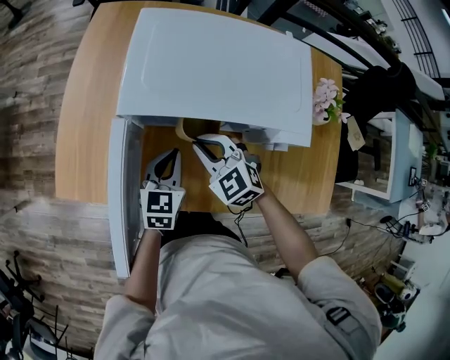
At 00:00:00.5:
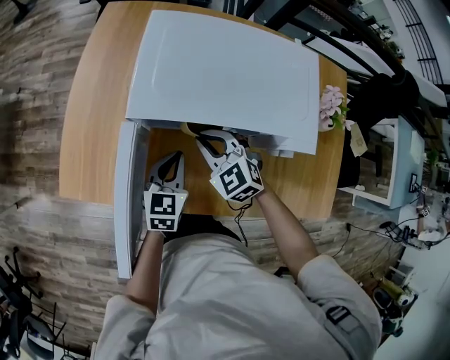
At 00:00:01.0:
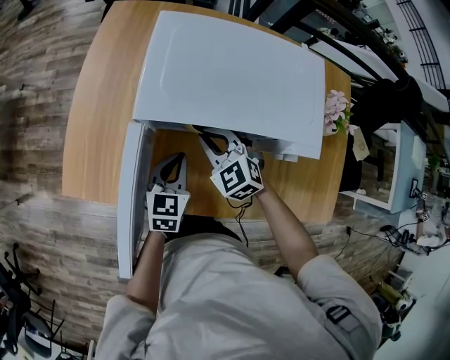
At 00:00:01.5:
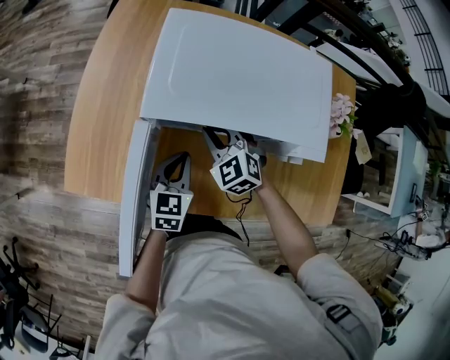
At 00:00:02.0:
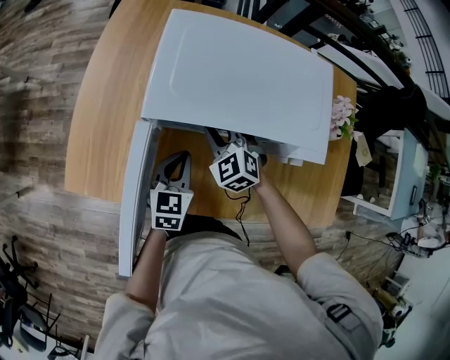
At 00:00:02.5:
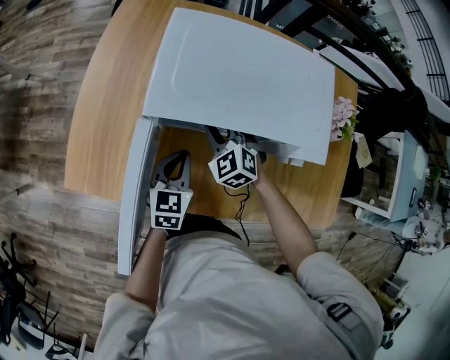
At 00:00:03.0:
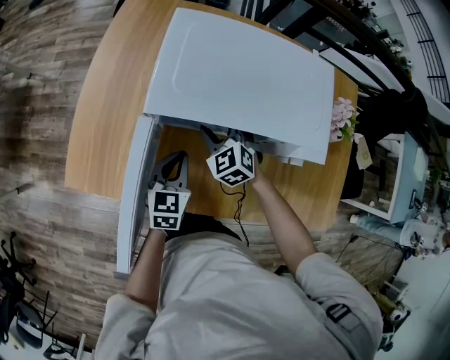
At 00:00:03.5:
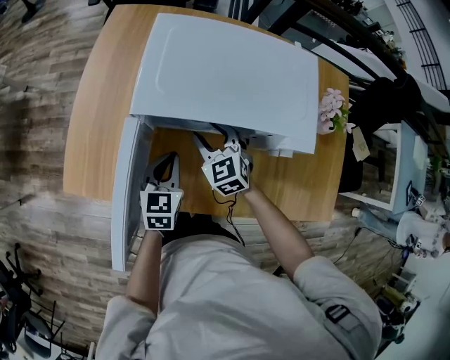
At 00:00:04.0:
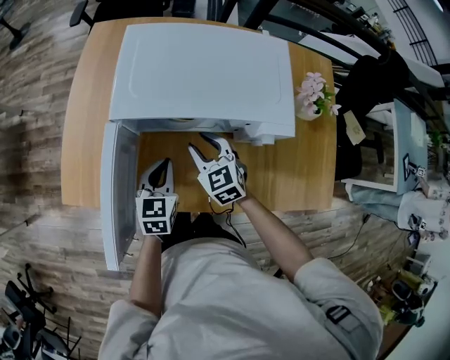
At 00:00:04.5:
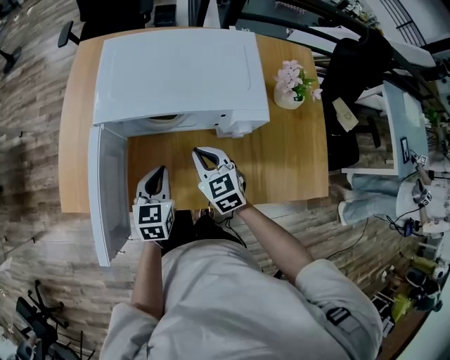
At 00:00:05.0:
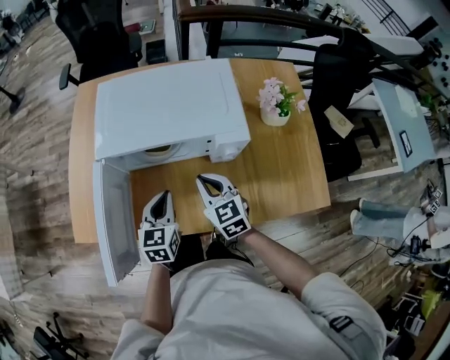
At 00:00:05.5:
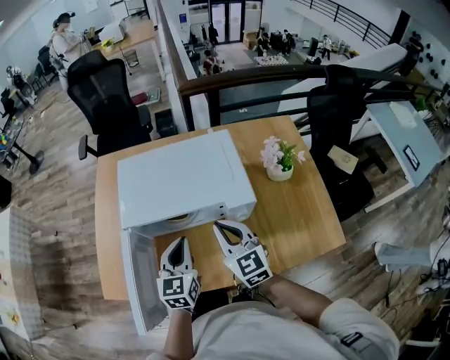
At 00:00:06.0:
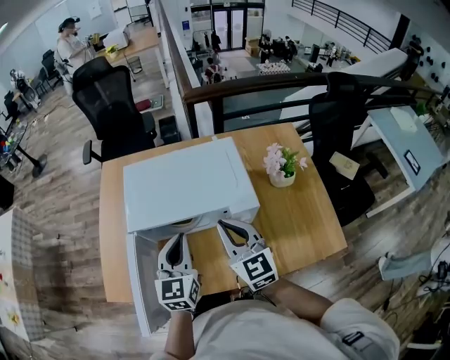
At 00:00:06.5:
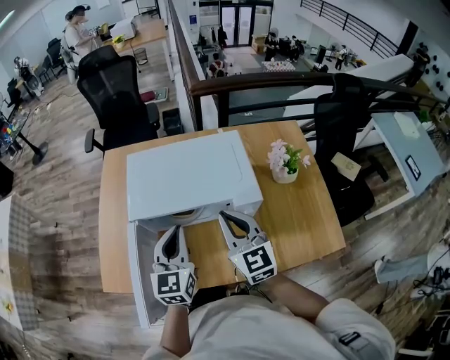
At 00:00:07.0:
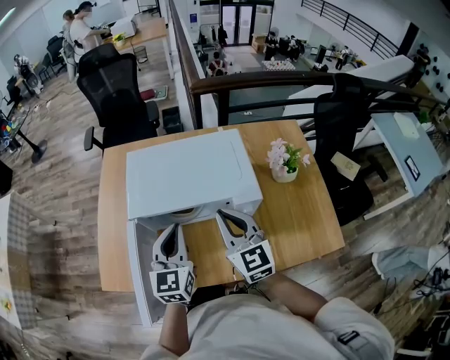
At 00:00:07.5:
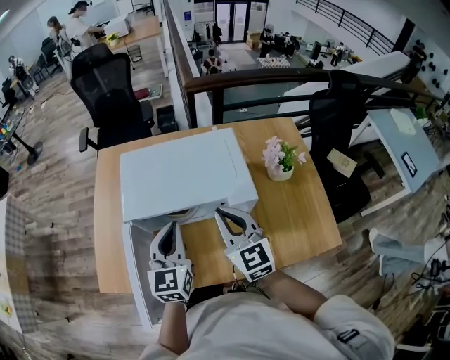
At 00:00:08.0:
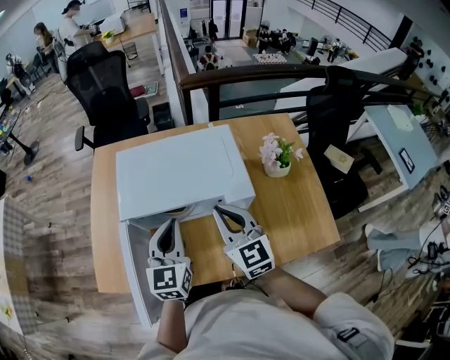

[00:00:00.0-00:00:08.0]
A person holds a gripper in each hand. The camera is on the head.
00:00:00.0 to 00:00:02.0: The right gripper is displaced forward by about 5 cm.
00:00:02.0 to 00:00:04.0: The right gripper travels backward by roughly 5 cm, swivels roughly 30 degrees, and opens its fingers.
00:00:04.0 to 00:00:06.0: Both grippers travel together upward and to the right, roughly 20 cm. The left gripper swivels roughly 20 degrees. The right gripper swivels some 30 degrees, and closes.
00:00:06.0 to 00:00:08.0: The grippers move only a little.

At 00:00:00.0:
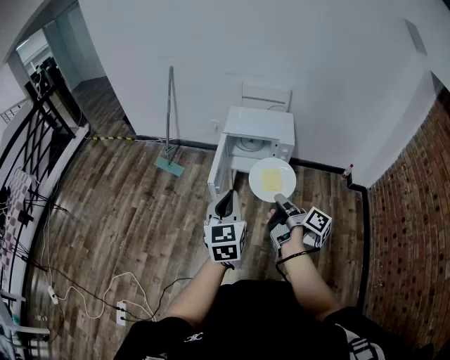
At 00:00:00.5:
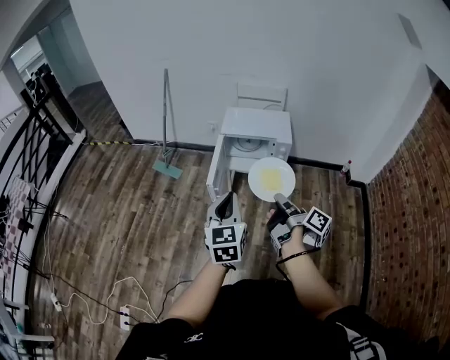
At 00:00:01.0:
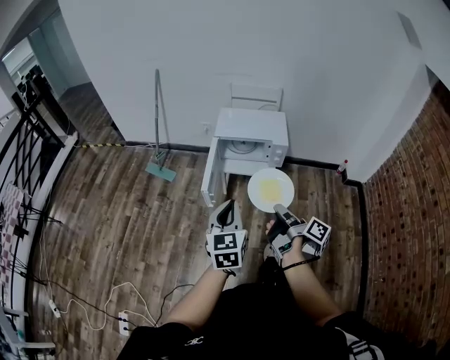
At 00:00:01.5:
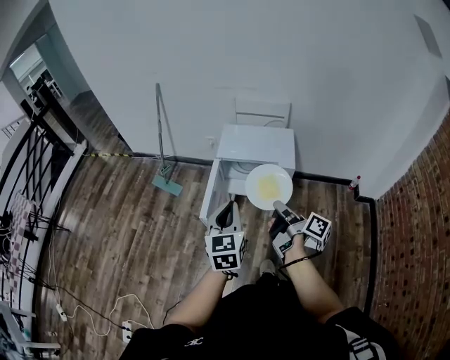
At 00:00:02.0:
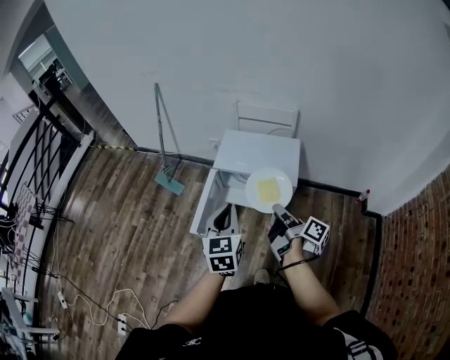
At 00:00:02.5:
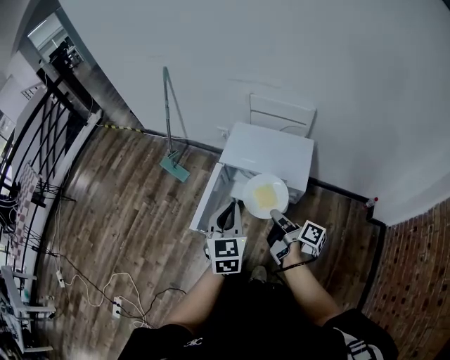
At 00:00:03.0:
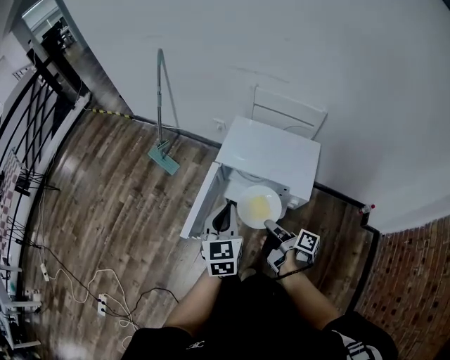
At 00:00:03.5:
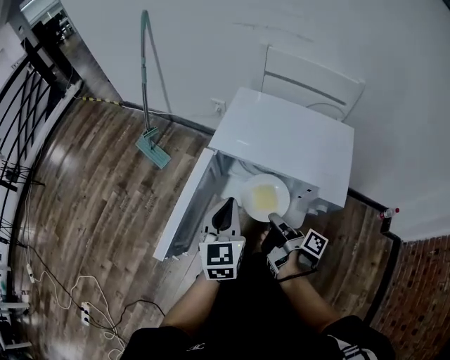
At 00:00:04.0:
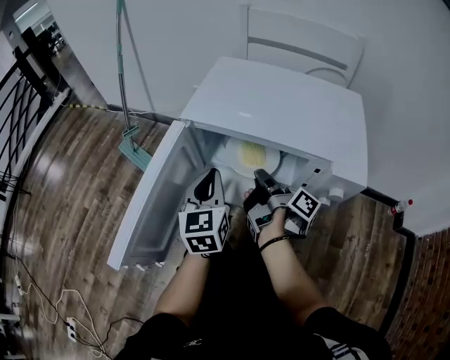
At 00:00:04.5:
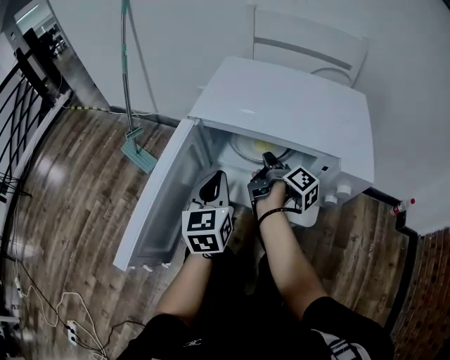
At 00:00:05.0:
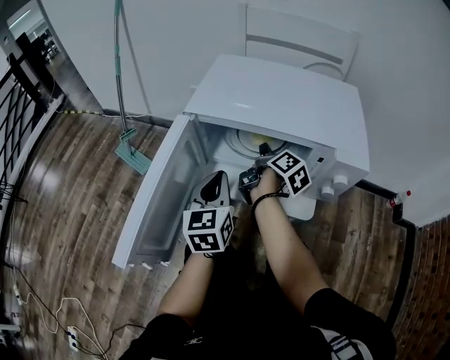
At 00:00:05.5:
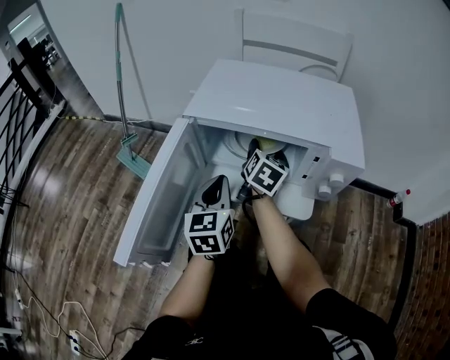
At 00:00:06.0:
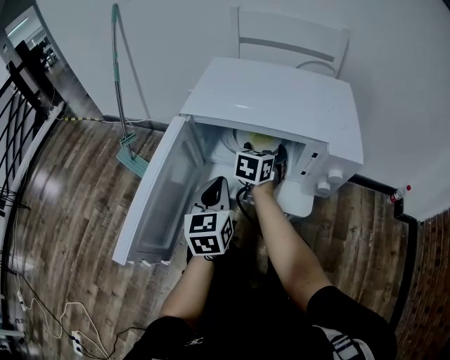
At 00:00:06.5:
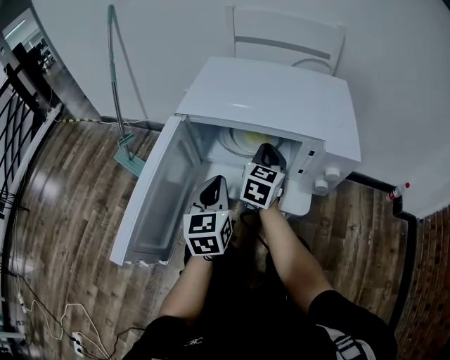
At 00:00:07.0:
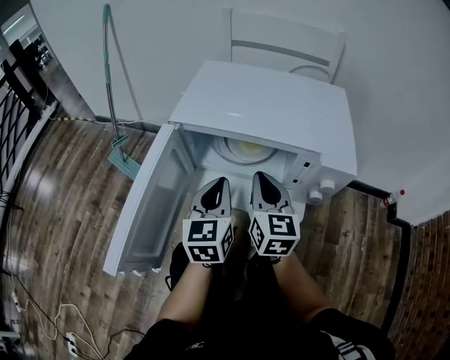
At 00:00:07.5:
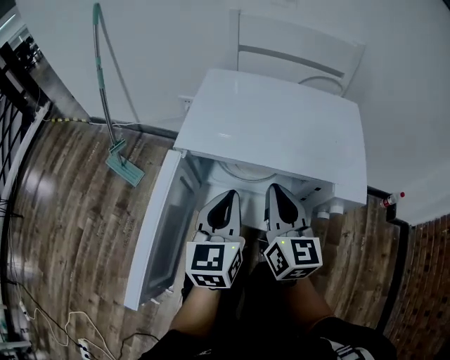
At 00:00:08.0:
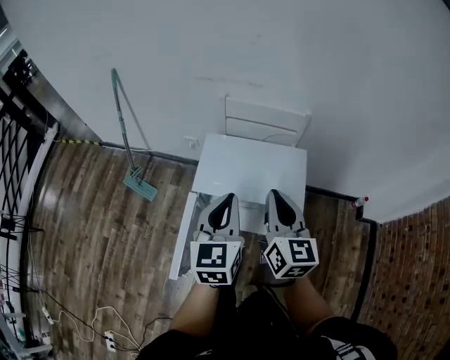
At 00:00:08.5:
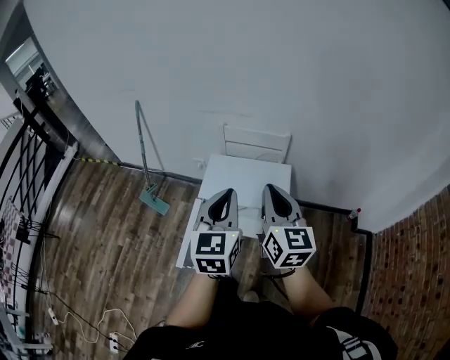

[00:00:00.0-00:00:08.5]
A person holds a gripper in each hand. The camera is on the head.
00:00:00.0 to 00:00:02.0: Both grippers travel together forward and to the right, about 30 cm.
00:00:02.0 to 00:00:04.0: The two grippers go about 50 cm downward and forward.
00:00:04.0 to 00:00:06.5: The right gripper heads forward, covering approximately 5 cm, rotates around the line of its fingers by roughly 90 degrees, counterclockwise from behind, and opens and closes again.
00:00:06.5 to 00:00:08.5: Both grippers travel together upward, about 60 cm. The right gripper turns by some 20 degrees.

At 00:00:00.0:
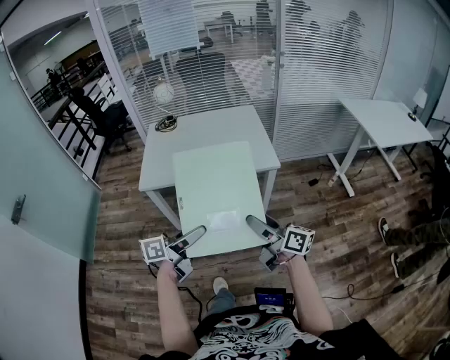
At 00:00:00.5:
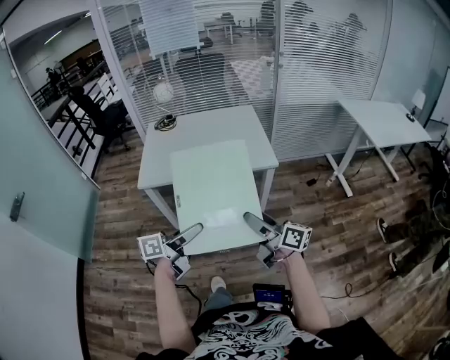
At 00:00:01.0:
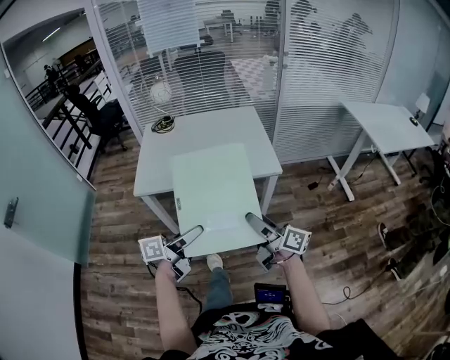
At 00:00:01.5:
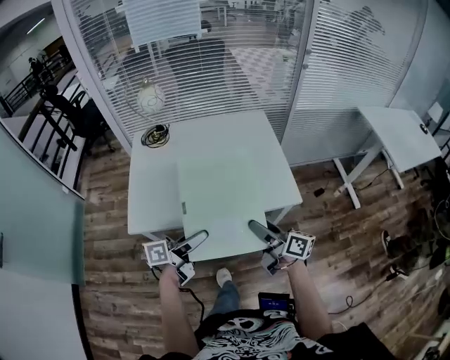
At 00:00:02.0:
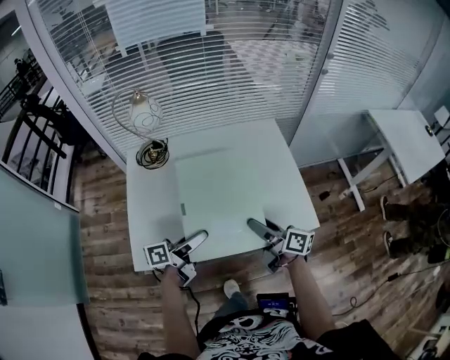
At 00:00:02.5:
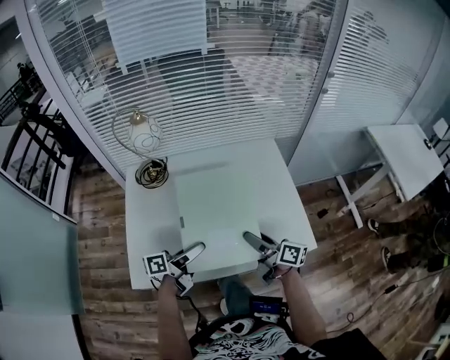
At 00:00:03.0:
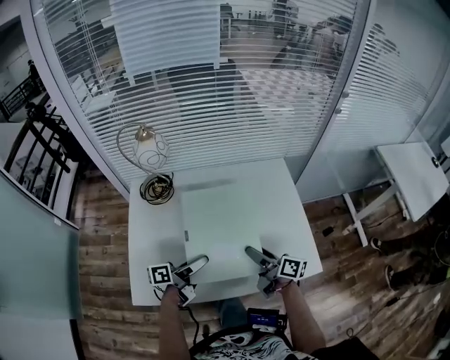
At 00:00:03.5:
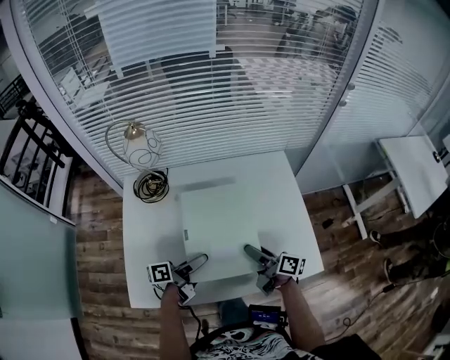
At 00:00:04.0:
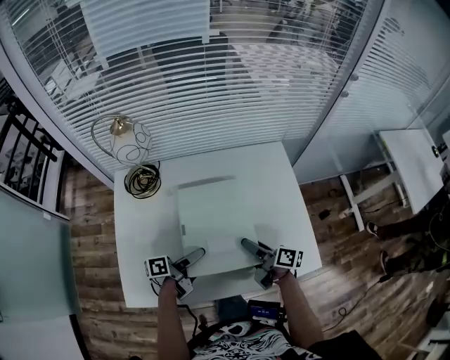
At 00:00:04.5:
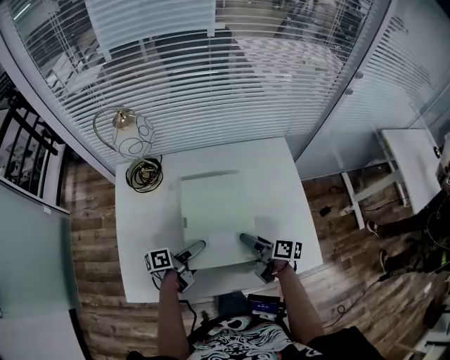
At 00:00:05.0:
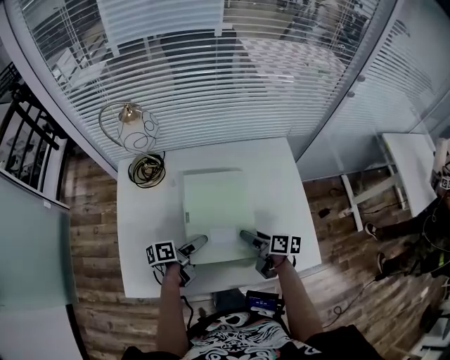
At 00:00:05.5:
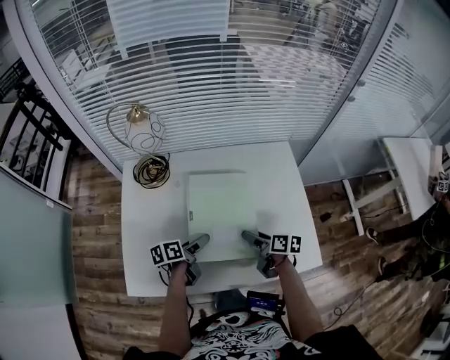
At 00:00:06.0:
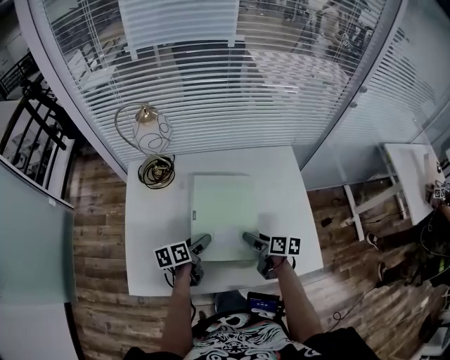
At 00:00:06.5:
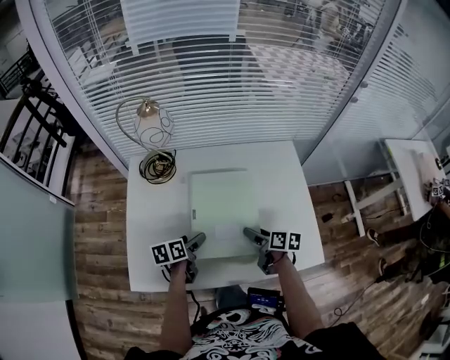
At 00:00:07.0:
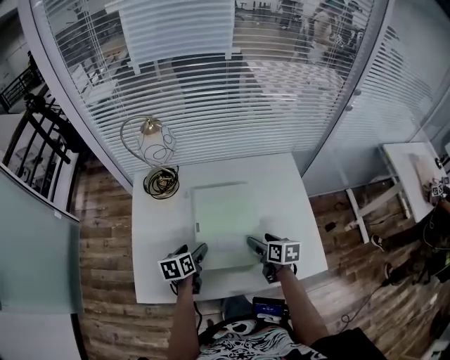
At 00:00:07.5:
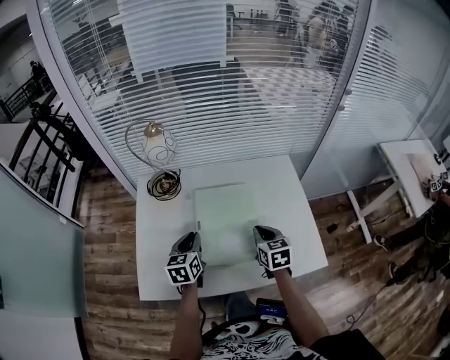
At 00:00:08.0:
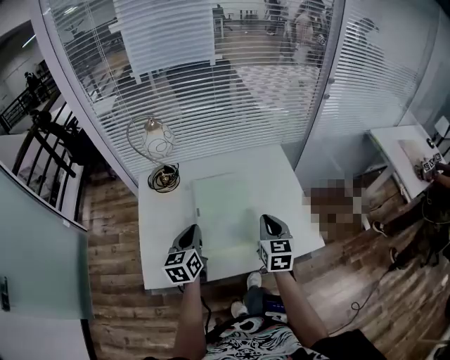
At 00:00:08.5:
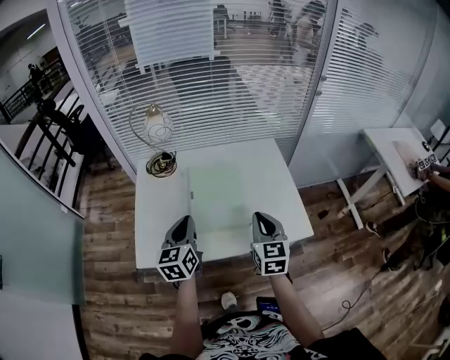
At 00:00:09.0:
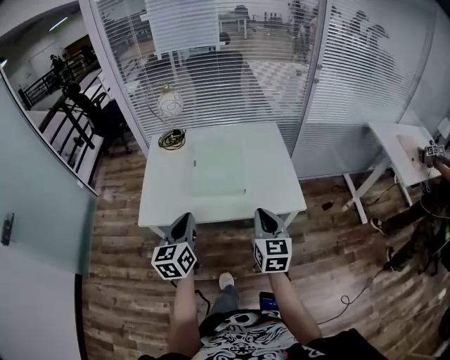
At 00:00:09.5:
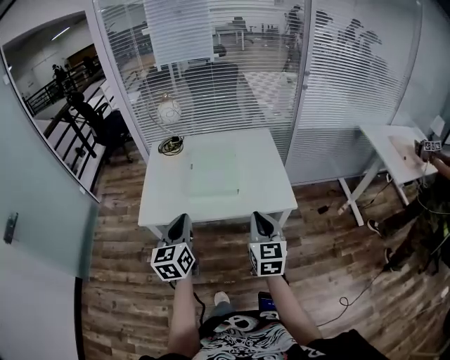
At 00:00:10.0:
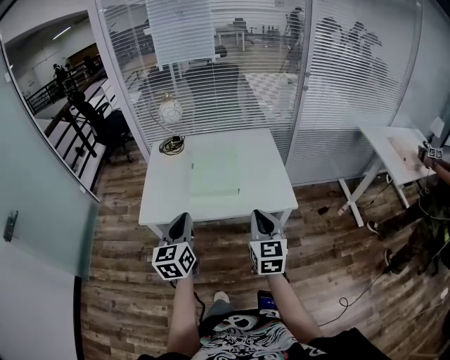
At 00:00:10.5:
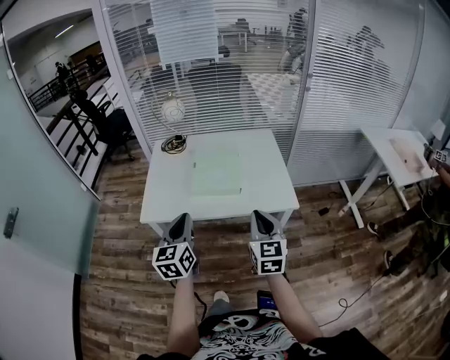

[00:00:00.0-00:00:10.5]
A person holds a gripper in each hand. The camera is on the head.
00:00:00.0 to 00:00:02.0: The pair of grippers is taken forward, roughly 40 cm.
00:00:02.0 to 00:00:04.0: Both grippers move forward and downward, approximately 15 cm.
00:00:04.0 to 00:00:06.5: The right gripper rotates roughly 30 degrees. The left gripper moves to the left and downward, about 10 cm, and points its fingers approximately 40 degrees further downward.
00:00:06.5 to 00:00:08.5: The grippers both shift upward and backward by some 25 cm. The right gripper rotates roughly 60 degrees, and closes; the left gripper changes its angle by roughly 50 degrees, and closes.
00:00:08.5 to 00:00:10.5: Both grippers move backward, approximately 20 cm.
